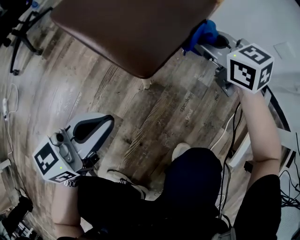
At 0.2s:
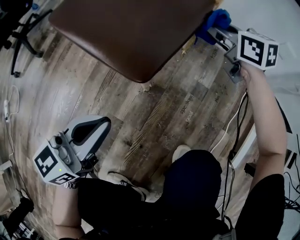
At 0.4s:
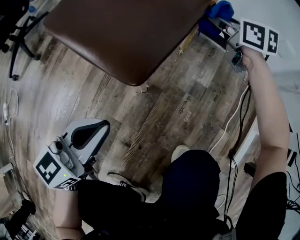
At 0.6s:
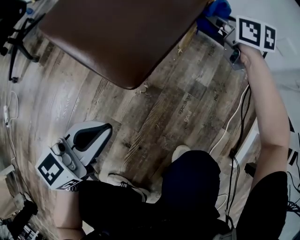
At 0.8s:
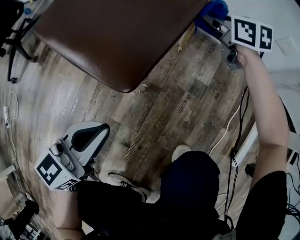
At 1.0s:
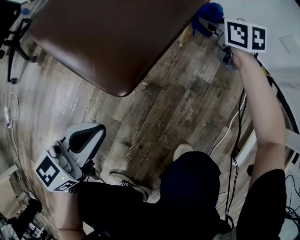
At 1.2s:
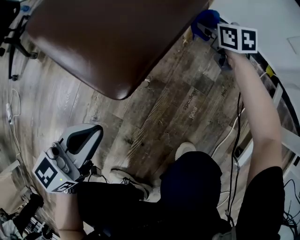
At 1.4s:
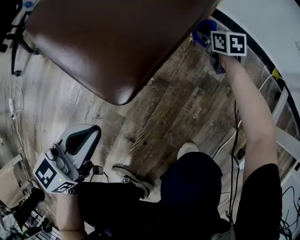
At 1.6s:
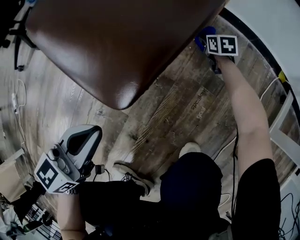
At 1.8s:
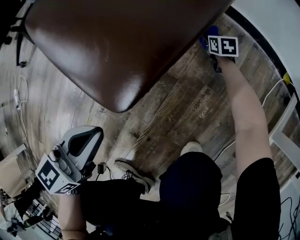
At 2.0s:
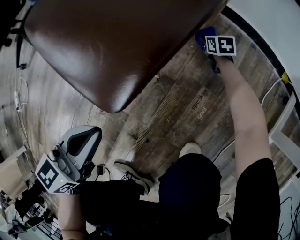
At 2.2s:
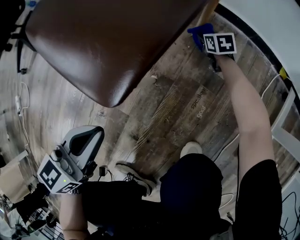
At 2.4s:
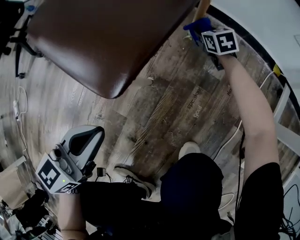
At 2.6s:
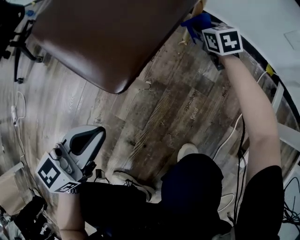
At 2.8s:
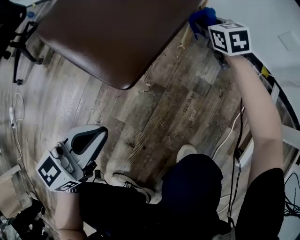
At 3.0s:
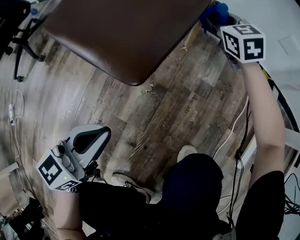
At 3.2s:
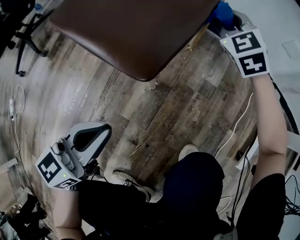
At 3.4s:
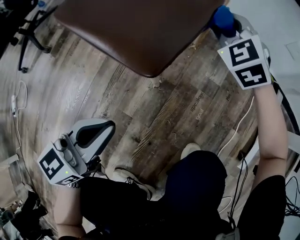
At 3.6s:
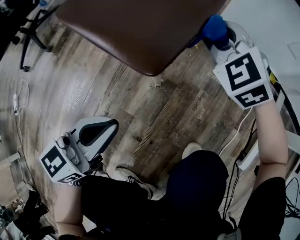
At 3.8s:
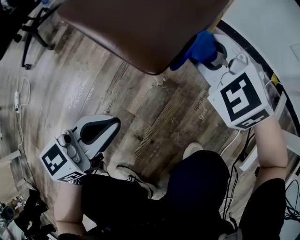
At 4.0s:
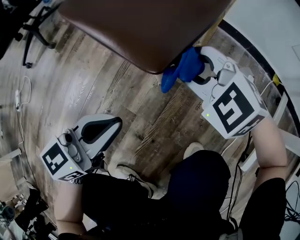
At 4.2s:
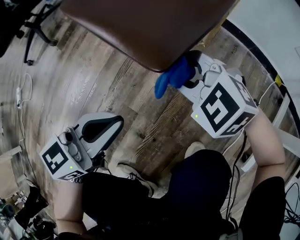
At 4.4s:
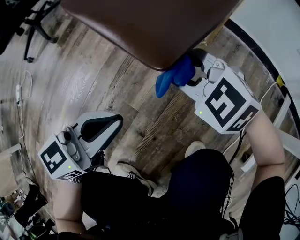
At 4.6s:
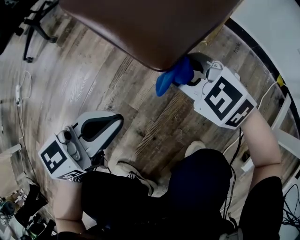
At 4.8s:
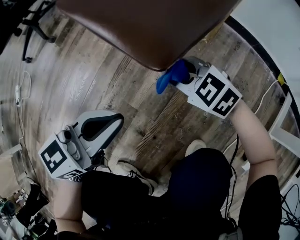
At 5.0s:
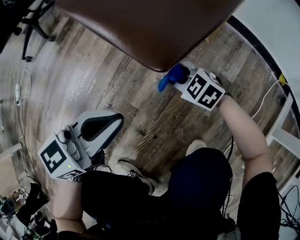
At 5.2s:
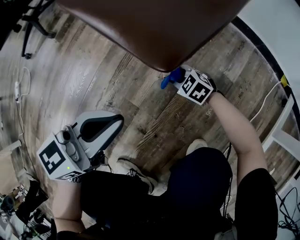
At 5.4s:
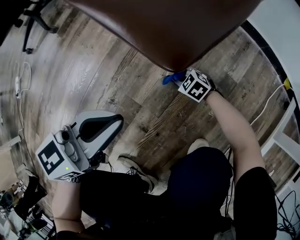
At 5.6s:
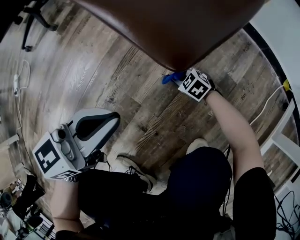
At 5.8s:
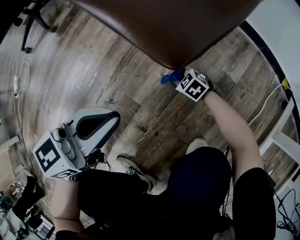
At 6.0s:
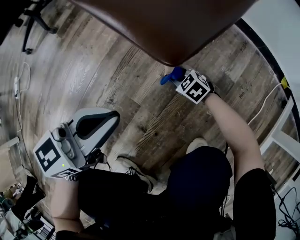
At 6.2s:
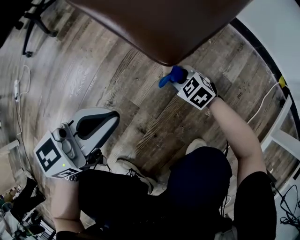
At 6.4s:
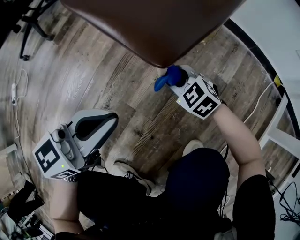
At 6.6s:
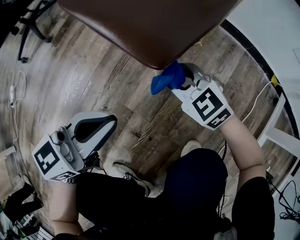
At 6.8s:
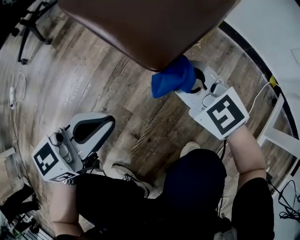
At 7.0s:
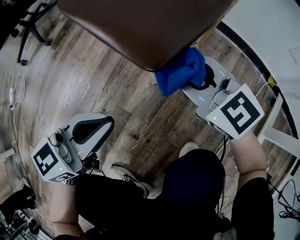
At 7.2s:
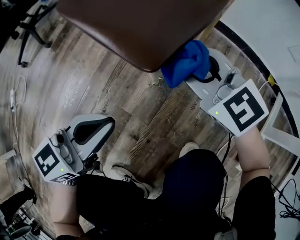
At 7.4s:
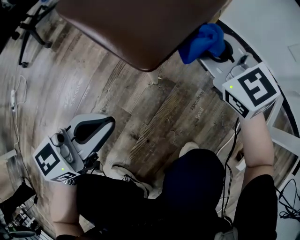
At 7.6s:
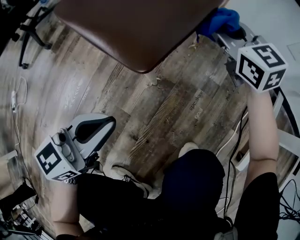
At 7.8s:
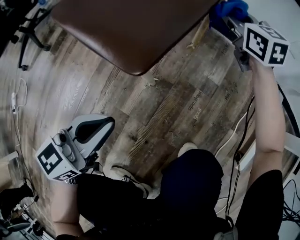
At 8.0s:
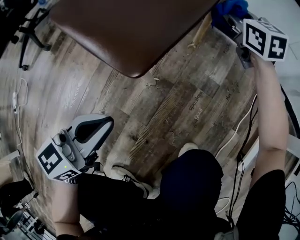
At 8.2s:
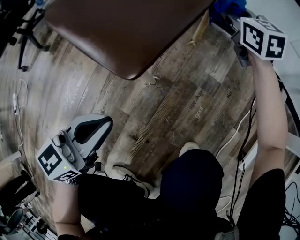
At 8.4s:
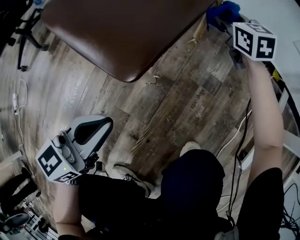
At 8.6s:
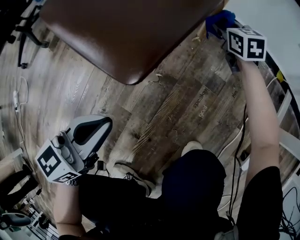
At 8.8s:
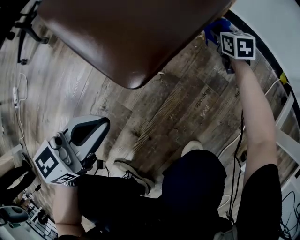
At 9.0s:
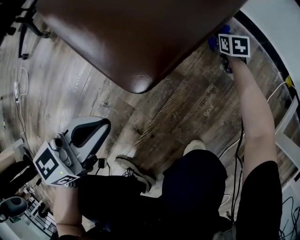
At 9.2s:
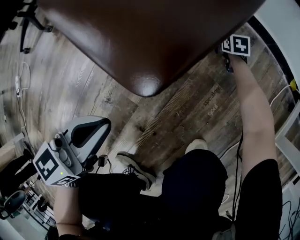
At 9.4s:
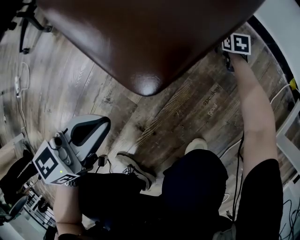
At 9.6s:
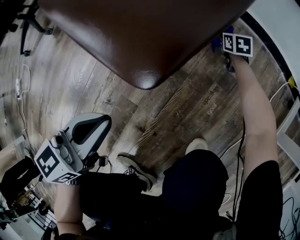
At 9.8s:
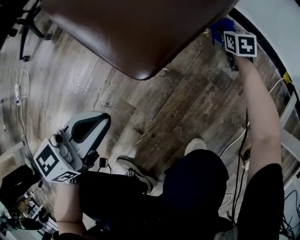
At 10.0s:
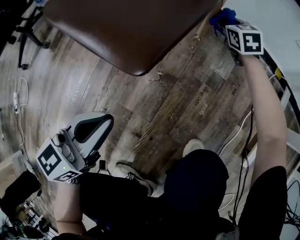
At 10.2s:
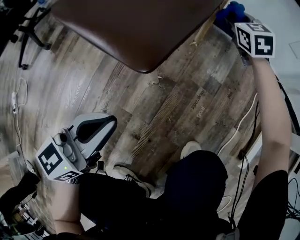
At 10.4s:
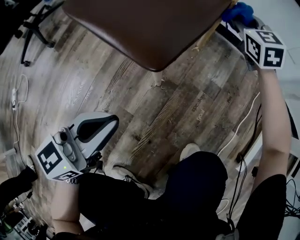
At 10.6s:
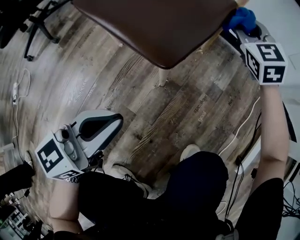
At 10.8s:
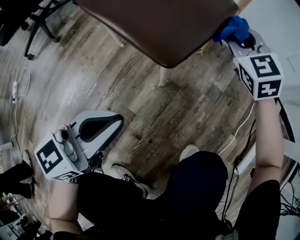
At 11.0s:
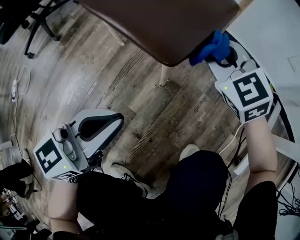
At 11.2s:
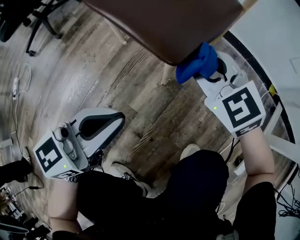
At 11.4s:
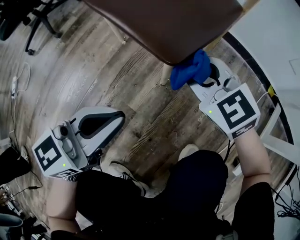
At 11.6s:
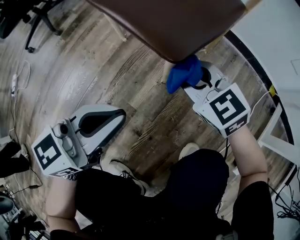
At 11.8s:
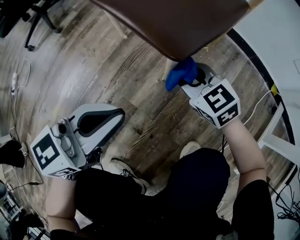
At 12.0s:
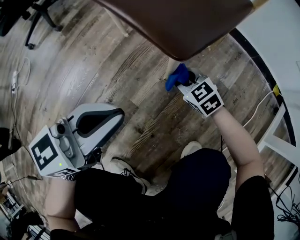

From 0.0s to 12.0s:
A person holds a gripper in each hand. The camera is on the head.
From 0.0s to 1.6s: The right gripper shifts roughly 35 cm downward, and rotates approximately 30 degrees. The left gripper travels downward by approximately 5 cm.
From 1.6s to 3.0s: The right gripper shifts about 30 cm upward, and rotates roughly 40 degrees.
From 3.0s to 4.4s: The right gripper shifts by some 30 cm, and swivels about 50 degrees.
From 4.4s to 6.0s: The right gripper shifts approximately 30 cm downward, and swivels about 20 degrees.
From 6.0s to 7.6s: The right gripper is displaced upward and forward by approximately 35 cm, and angles its fingers upward, by approximately 30 degrees.
From 7.6s to 9.0s: The right gripper moves downward, about 35 cm, and tips its fingers downward by some 30 degrees.
From 9.0s to 10.4s: The right gripper goes some 30 cm upward, and swivels some 40 degrees, while the left gripper goes approximately 5 cm upward.
From 10.4s to 12.0s: The right gripper goes approximately 35 cm backward, downward and to the left, and rotates approximately 40 degrees.

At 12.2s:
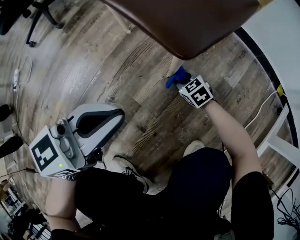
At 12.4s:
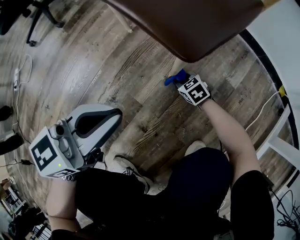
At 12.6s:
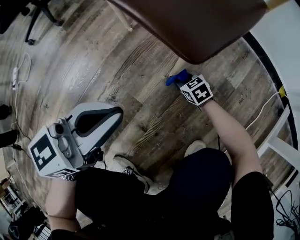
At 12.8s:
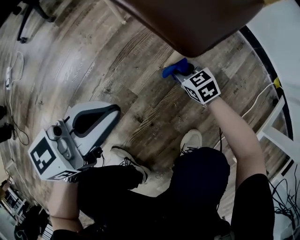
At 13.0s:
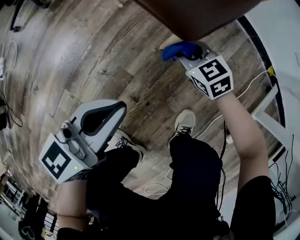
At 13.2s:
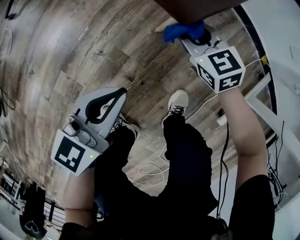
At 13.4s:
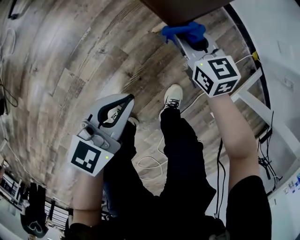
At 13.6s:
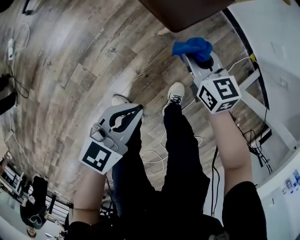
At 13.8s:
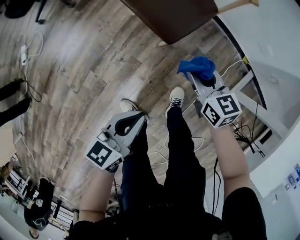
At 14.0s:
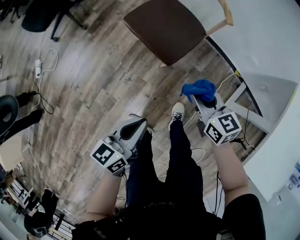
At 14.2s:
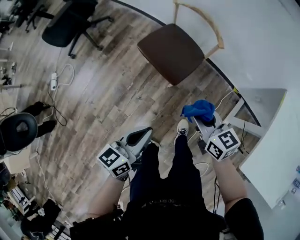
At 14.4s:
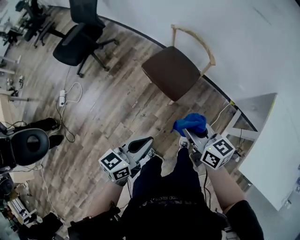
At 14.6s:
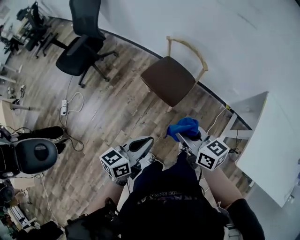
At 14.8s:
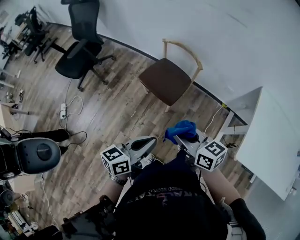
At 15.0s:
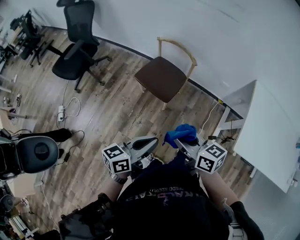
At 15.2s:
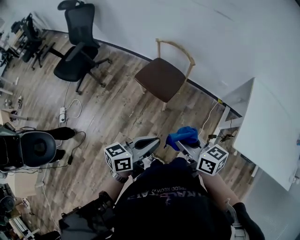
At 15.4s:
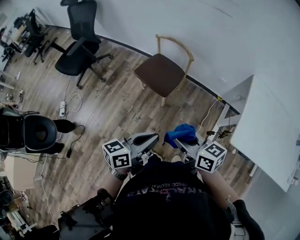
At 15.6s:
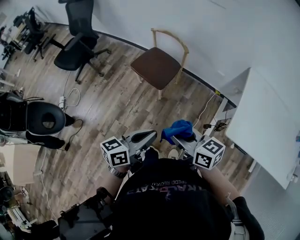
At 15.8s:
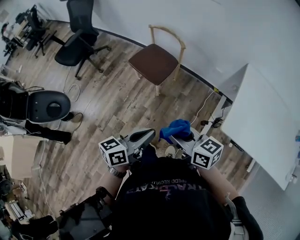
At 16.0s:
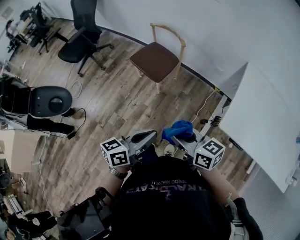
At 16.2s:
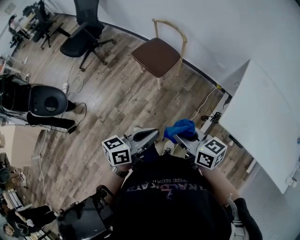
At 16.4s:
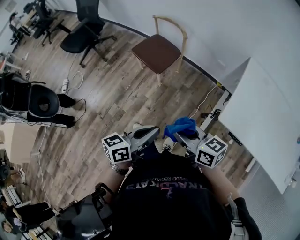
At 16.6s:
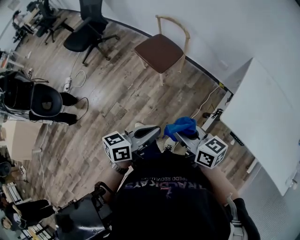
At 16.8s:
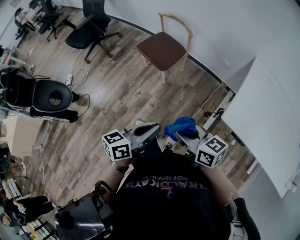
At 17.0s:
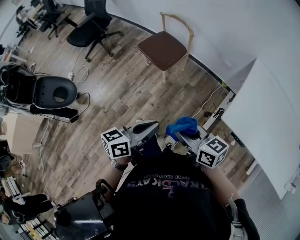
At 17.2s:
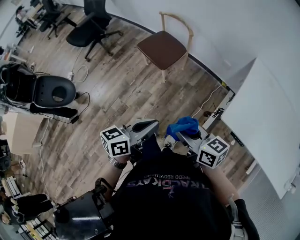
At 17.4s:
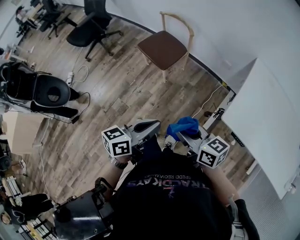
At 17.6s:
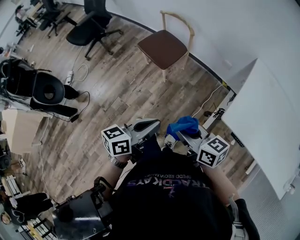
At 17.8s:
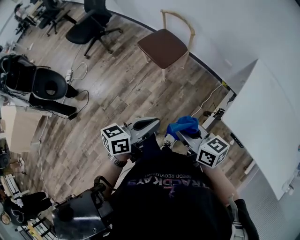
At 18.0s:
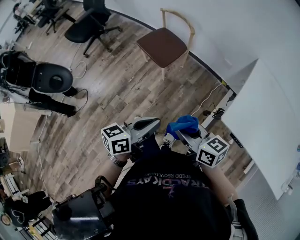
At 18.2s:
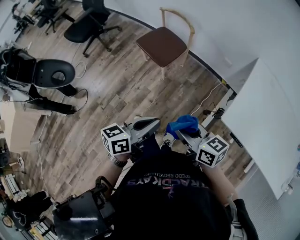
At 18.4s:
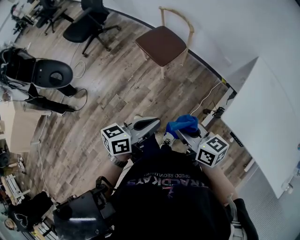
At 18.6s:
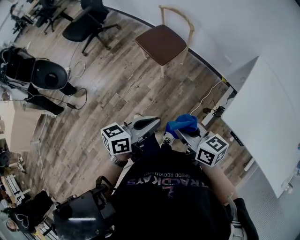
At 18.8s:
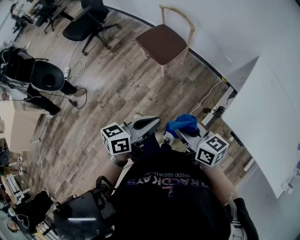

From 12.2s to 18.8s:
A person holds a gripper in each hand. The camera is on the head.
From 12.2s to 13.8s: The right gripper shifts some 50 cm upward, and swivels some 30 degrees; the left gripper moves upward and backward, approximately 25 cm, and rotates approximately 20 degrees.
From 13.8s to 15.4s: The right gripper goes some 50 cm upward and backward, and swivels roughly 20 degrees. The left gripper heads upward, covering roughly 35 cm, and rotates about 20 degrees.
From 15.4s to 17.2s: Both grippers travel together backward and to the right, roughly 15 cm.
From 17.2s to 18.8s: The grippers stay close to where they were, moving slightly.

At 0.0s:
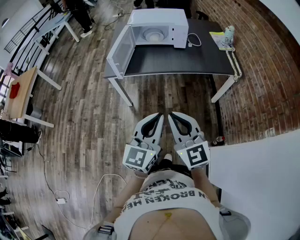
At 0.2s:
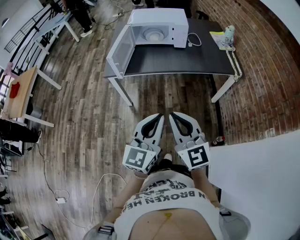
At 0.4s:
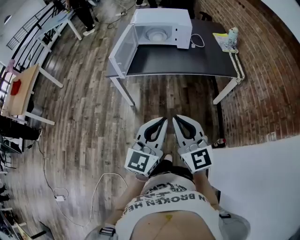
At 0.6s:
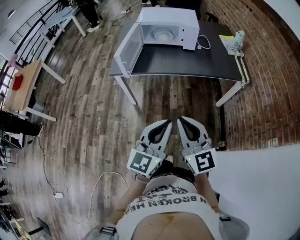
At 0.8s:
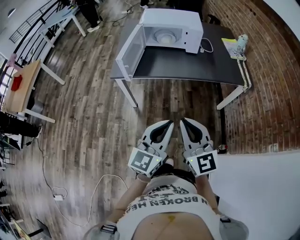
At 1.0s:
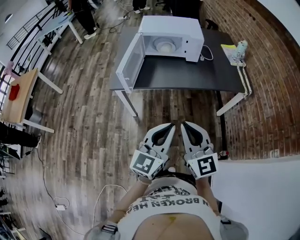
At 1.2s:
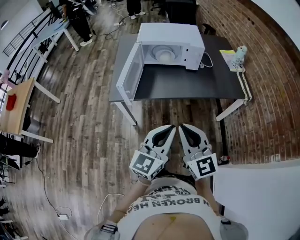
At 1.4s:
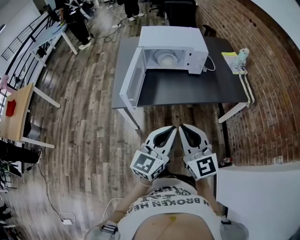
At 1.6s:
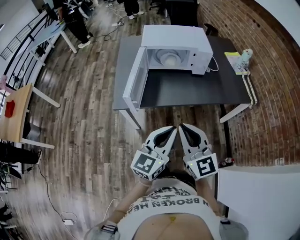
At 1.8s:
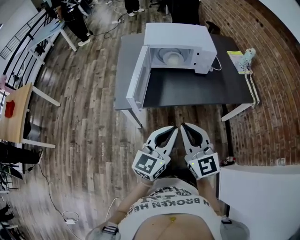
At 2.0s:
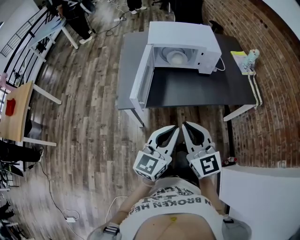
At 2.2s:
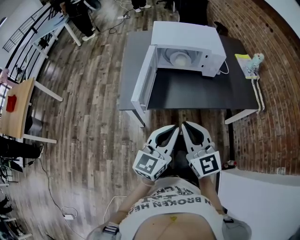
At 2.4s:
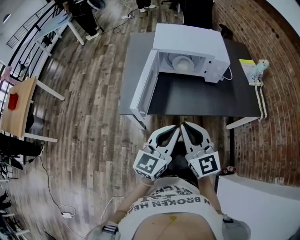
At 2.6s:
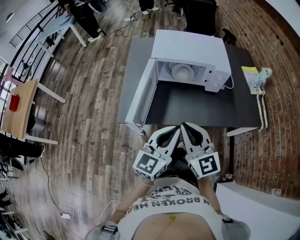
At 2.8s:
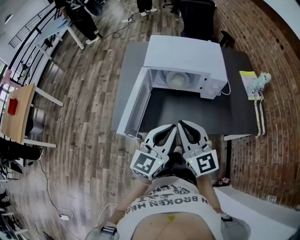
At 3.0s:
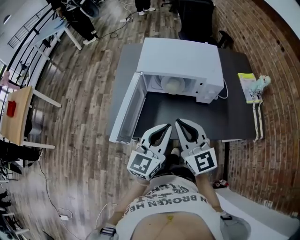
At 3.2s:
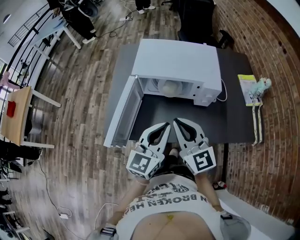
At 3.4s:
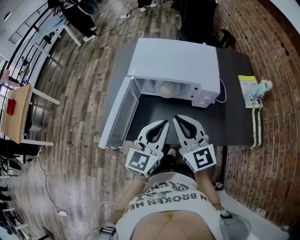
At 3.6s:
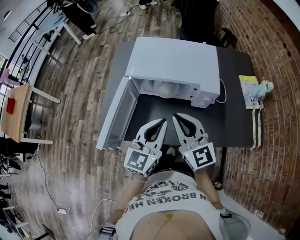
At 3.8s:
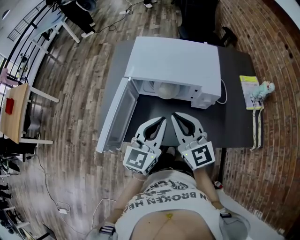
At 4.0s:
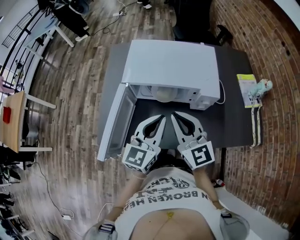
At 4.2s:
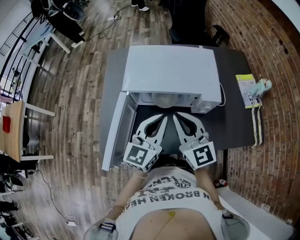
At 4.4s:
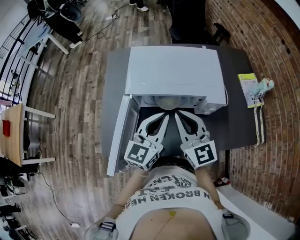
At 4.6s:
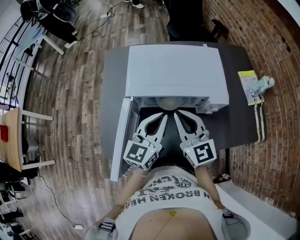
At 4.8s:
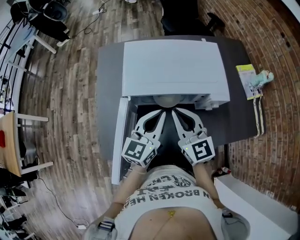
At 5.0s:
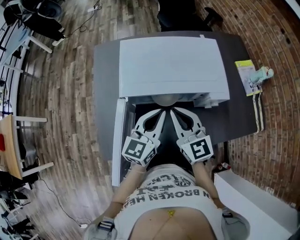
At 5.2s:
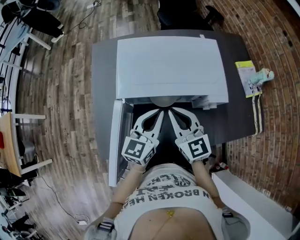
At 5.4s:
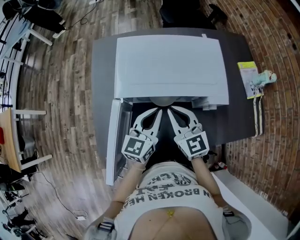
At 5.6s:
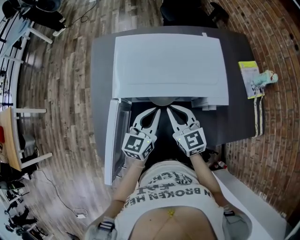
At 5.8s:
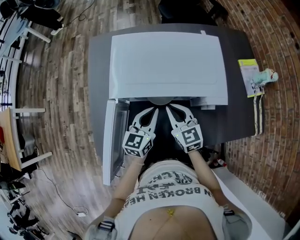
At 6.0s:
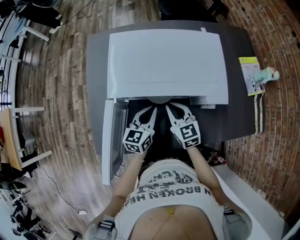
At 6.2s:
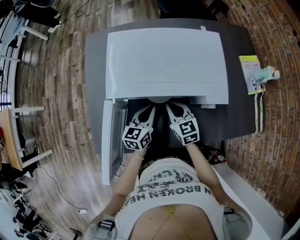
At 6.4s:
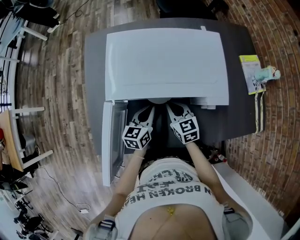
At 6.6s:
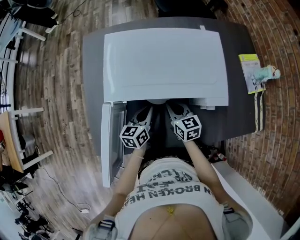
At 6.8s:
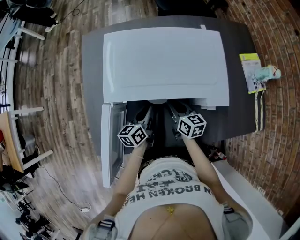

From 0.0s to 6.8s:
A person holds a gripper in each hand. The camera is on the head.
From 0.0s to 1.4s: The left gripper is displaced forward by about 20 cm; the right gripper shifts about 20 cm forward and to the left.
From 1.4s to 2.8s: The grippers both shift forward by roughly 25 cm.
From 2.8s to 4.0s: The two grippers go roughly 15 cm forward.
From 4.0s to 5.4s: The two grippers go about 15 cm forward and downward.
From 5.4s to 6.8s: Both grippers travel together downward, approximately 15 cm. The left gripper swivels about 30 degrees. Meanwhile the right gripper turns by some 40 degrees.
